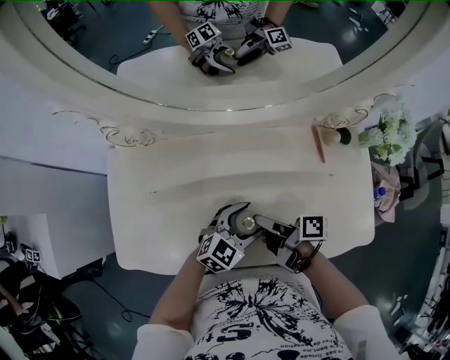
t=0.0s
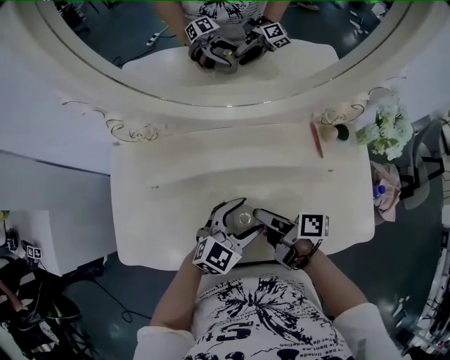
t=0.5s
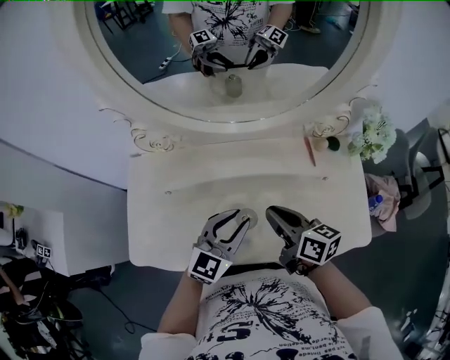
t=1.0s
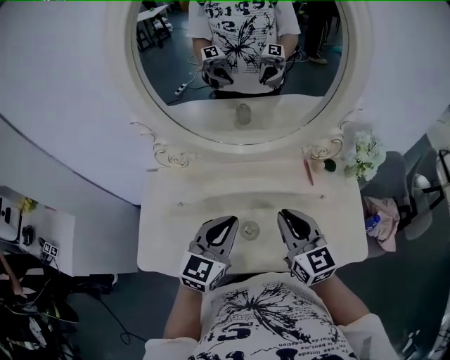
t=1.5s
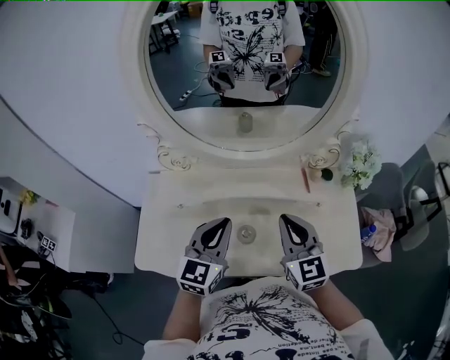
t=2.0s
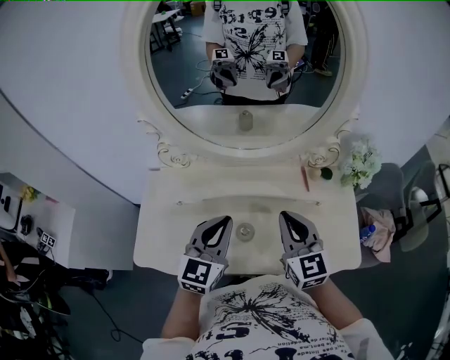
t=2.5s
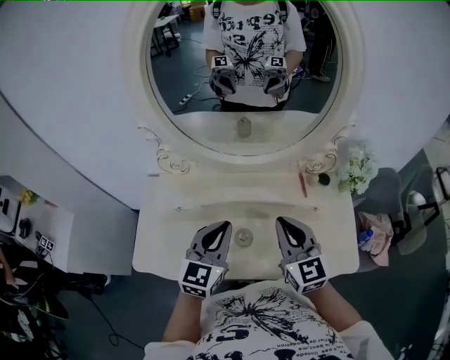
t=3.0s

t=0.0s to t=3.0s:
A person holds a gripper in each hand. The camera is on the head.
t=0.0s to t=1.5s: The left gripper shifts roughly 20 cm upward, rotates some 30 degrees, and closes.

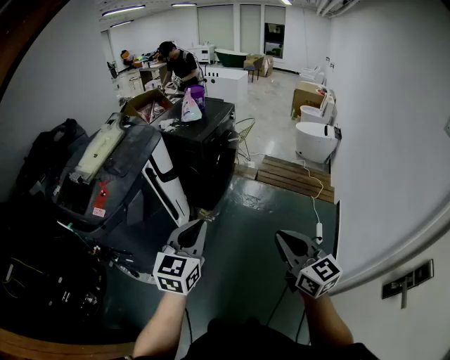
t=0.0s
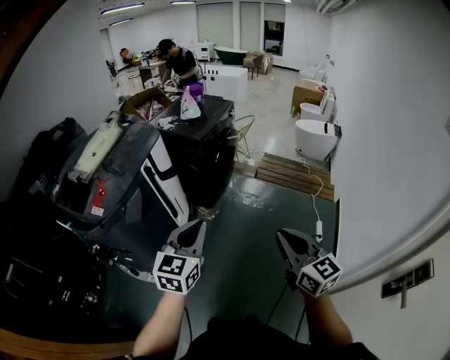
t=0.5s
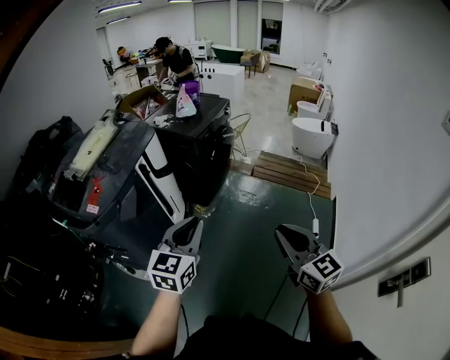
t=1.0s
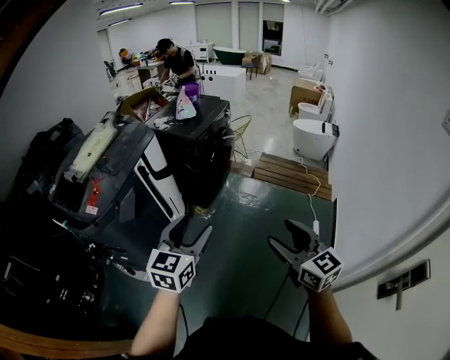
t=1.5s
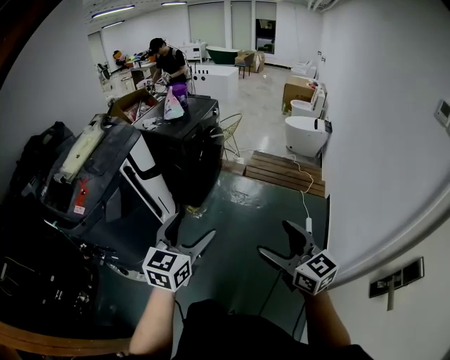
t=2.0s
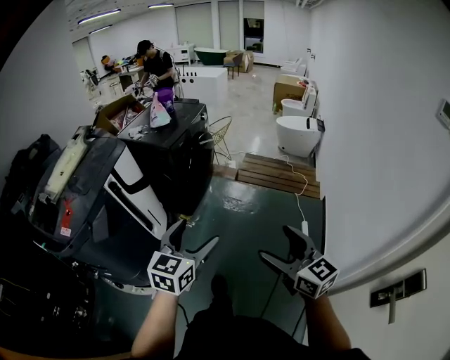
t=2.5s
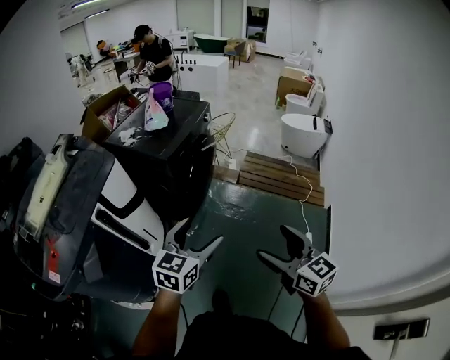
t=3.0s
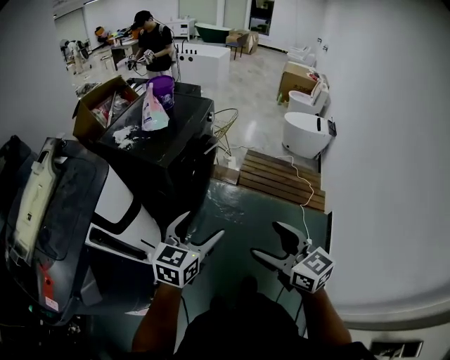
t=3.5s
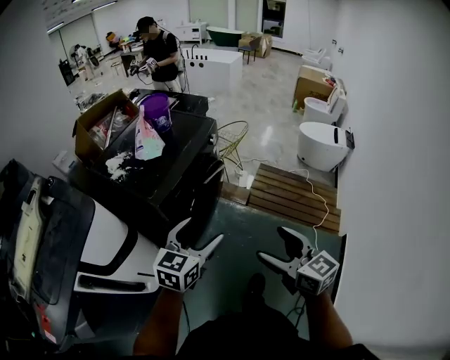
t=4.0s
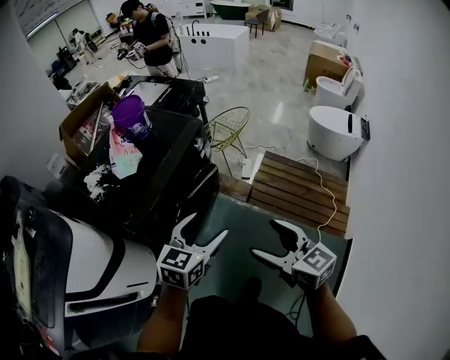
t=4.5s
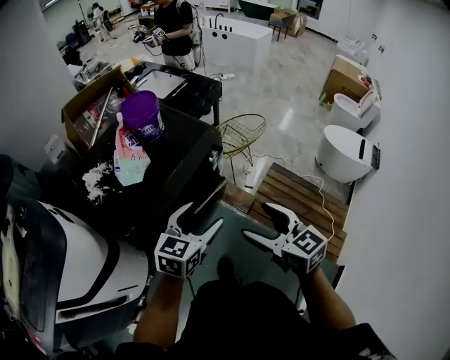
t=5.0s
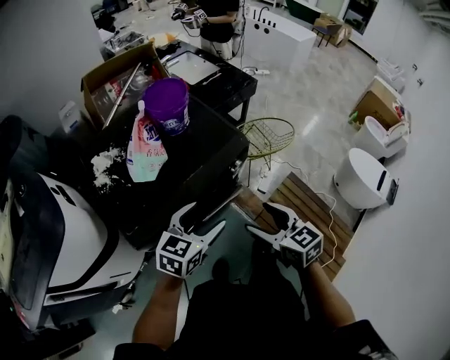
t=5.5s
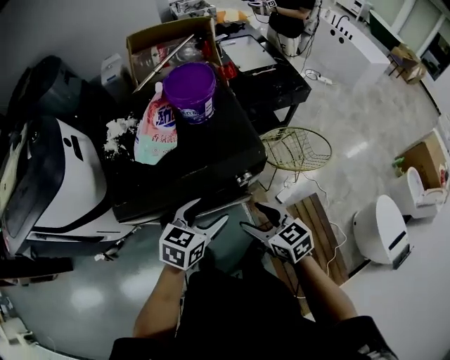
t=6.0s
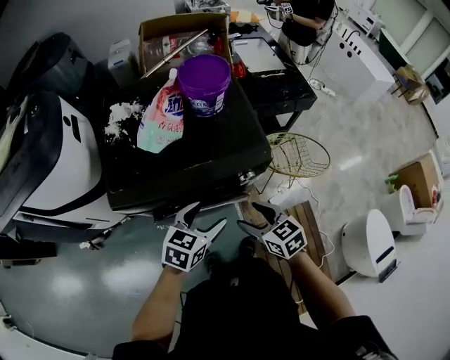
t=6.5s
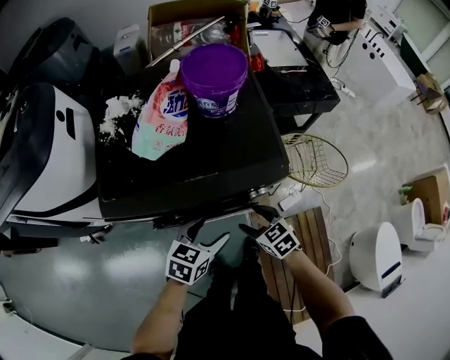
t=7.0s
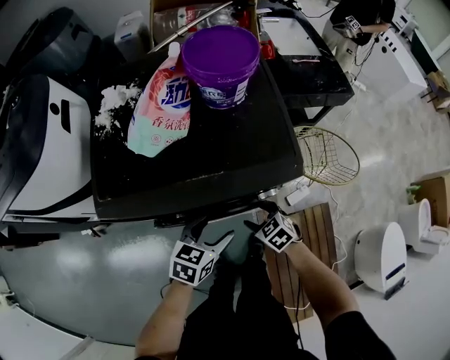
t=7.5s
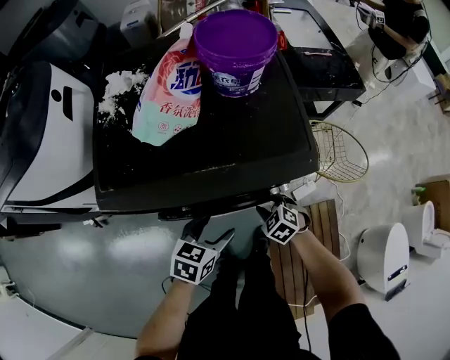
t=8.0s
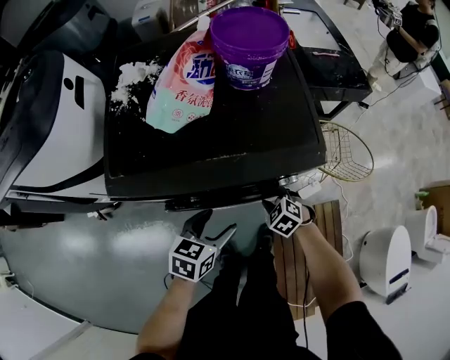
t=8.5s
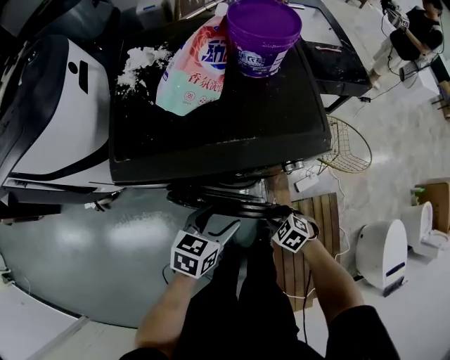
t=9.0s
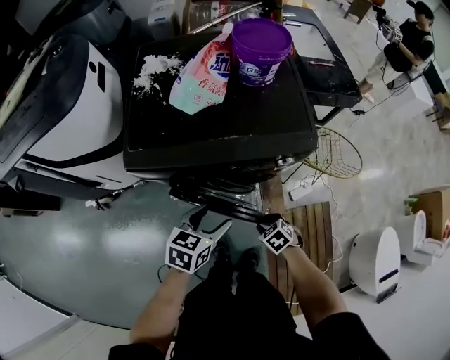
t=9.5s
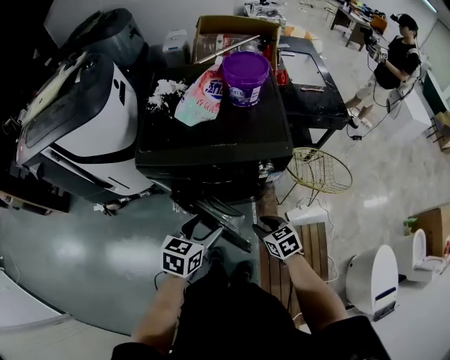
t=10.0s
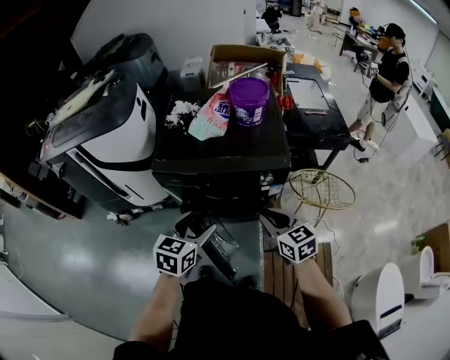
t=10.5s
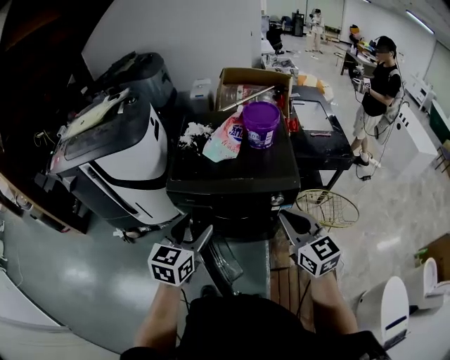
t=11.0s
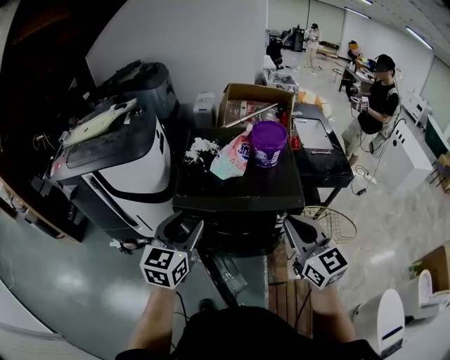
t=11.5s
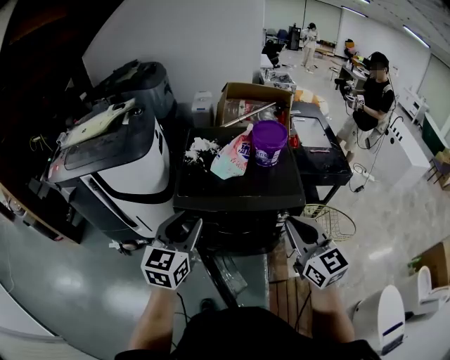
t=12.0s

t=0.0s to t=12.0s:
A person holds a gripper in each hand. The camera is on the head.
t=0.0s to t=2.0s: The grippers both shift to the right by roughly 10 cm. The right gripper opens up; the left gripper opens.
t=2.0s to t=4.0s: The pair of grippers is taken forward, roughly 50 cm.
t=4.0s to t=6.0s: The two grippers travel together, roughly 50 cm. The right gripper changes its angle by approximately 60 degrees. Meanwhile the left gripper rotates approximately 40 degrees.
t=6.0s to t=8.0s: The left gripper moves downward, approximately 20 cm; the right gripper moves downward, about 30 cm, and points its fingers some 30 degrees further downward.
t=8.0s to t=10.0s: The left gripper is displaced upward and backward by about 20 cm. Meanwhile the right gripper moves backward and upward, about 20 cm, and turns by some 30 degrees.
t=10.0s to t=12.0s: The left gripper travels upward and to the left by some 25 cm, rotates about 30 degrees, and closes; the right gripper moves upward, approximately 35 cm, and angles its fingers upward, by about 40 degrees.

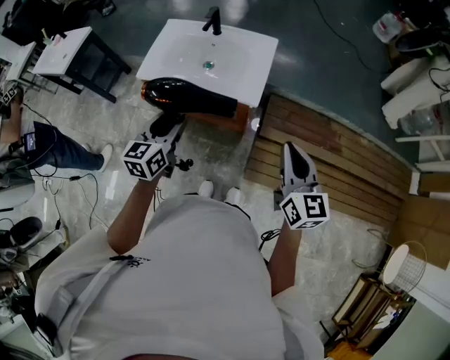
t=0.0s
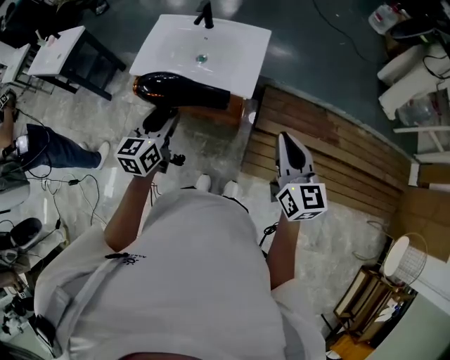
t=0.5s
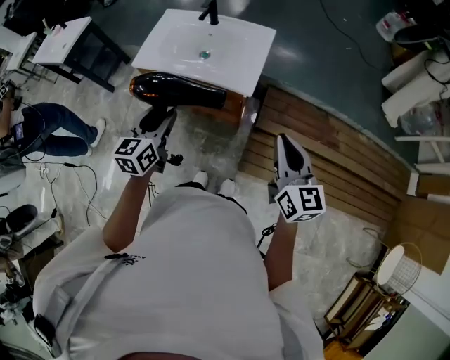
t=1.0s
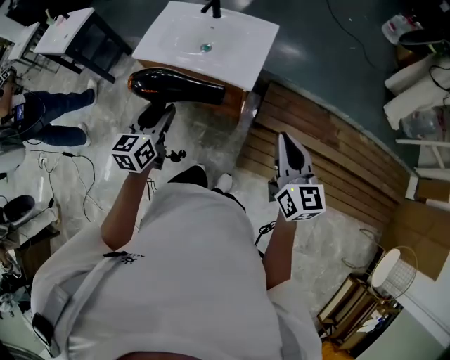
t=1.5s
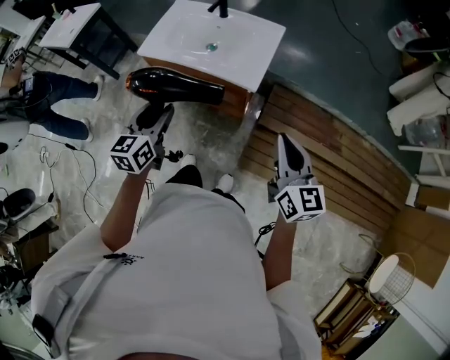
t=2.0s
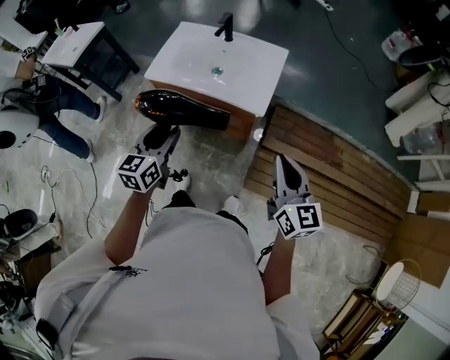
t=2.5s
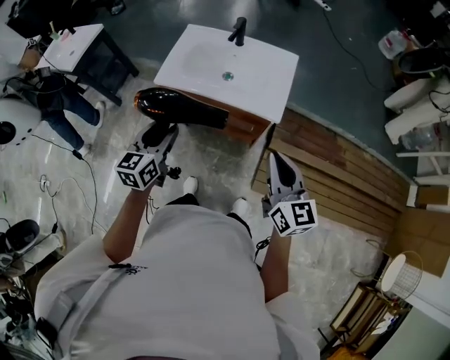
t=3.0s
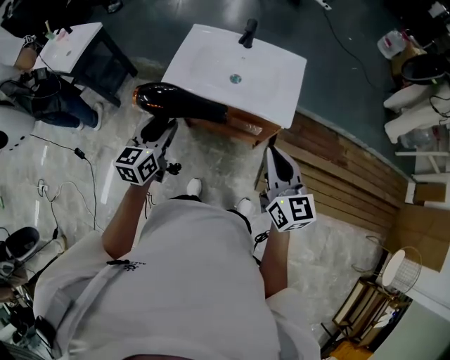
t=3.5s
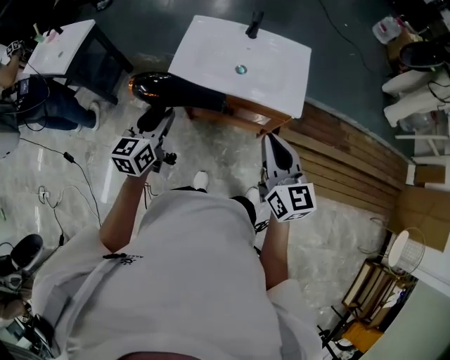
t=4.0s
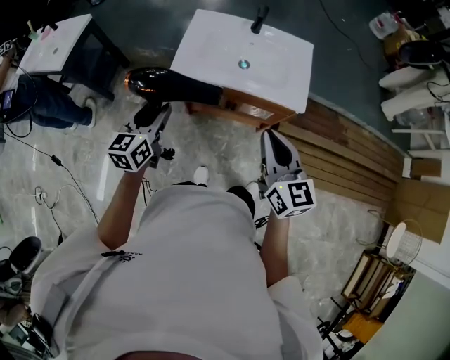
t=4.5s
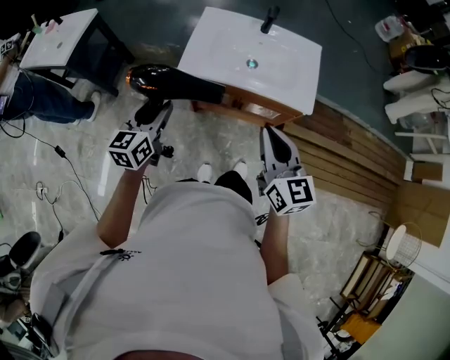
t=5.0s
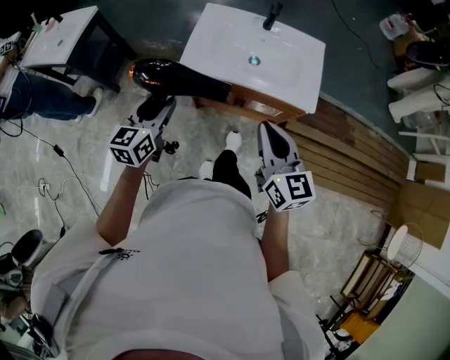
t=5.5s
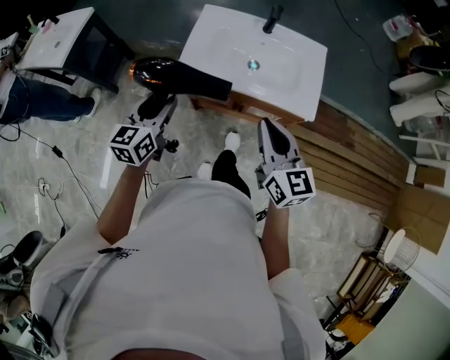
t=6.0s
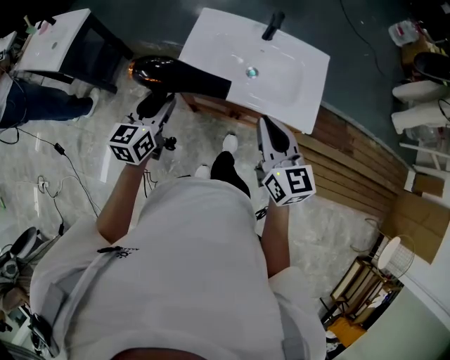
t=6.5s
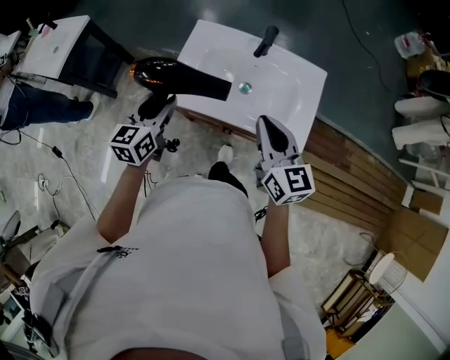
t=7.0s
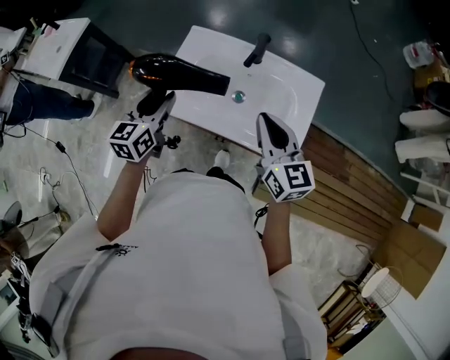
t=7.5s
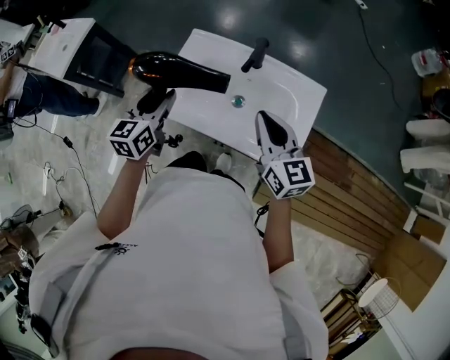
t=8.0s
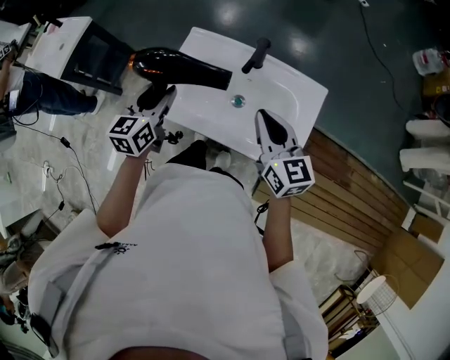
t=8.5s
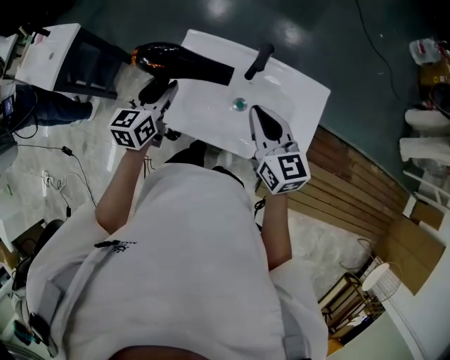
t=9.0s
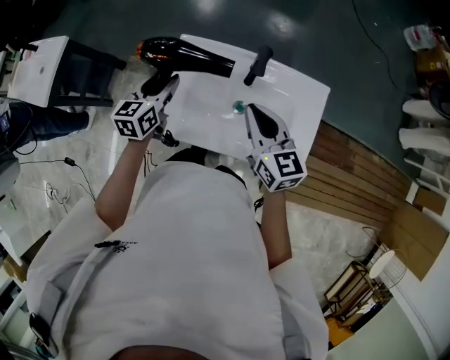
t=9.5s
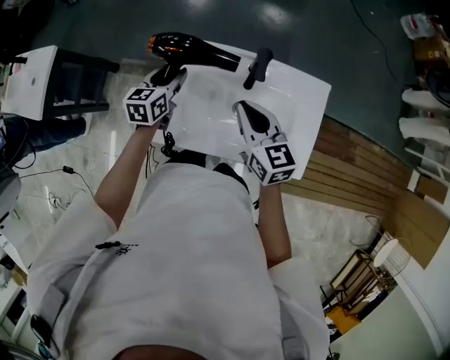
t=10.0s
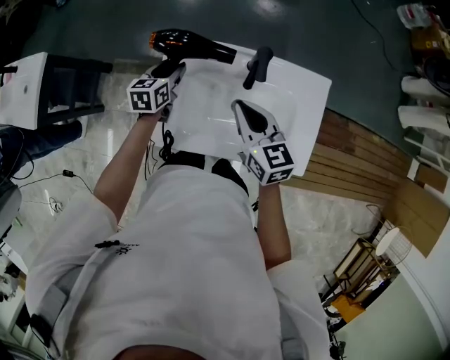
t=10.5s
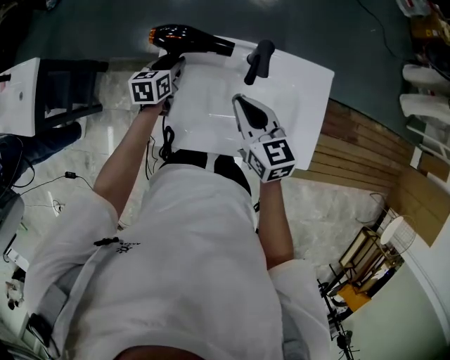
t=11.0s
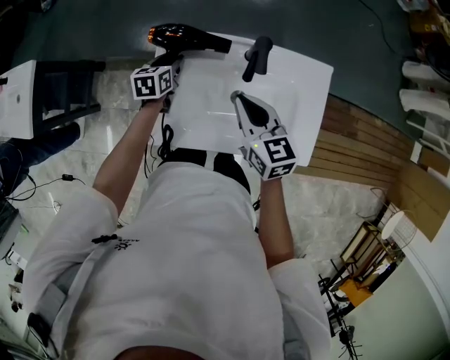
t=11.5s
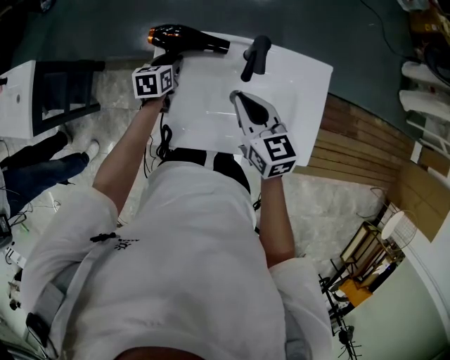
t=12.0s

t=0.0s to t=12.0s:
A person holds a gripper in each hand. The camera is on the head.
t=0.0s to t=2.0s: The grippers stay close to where they were, moving slightly.
t=2.0s to t=4.0s: The left gripper shifts some 30 cm to the left and forward. The right gripper is displaced to the left by roughly 30 cm.
t=4.0s to t=6.0s: The right gripper moves forward and to the left, approximately 10 cm. The left gripper shifts approximately 5 cm forward.
t=6.0s to t=8.0s: Both grippers travel together forward and to the right, roughly 25 cm.
t=8.0s to t=10.0s: The left gripper travels forward and downward by some 25 cm; the right gripper travels forward, to the left and downward by approximately 15 cm.
t=10.0s to t=12.0s: The left gripper shifts some 10 cm downward.
